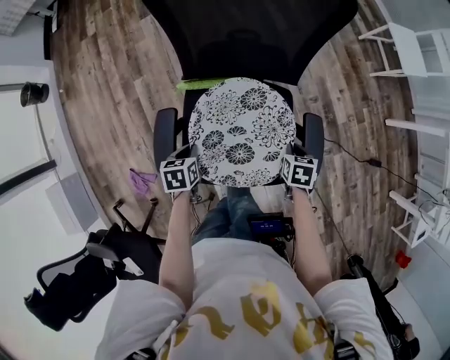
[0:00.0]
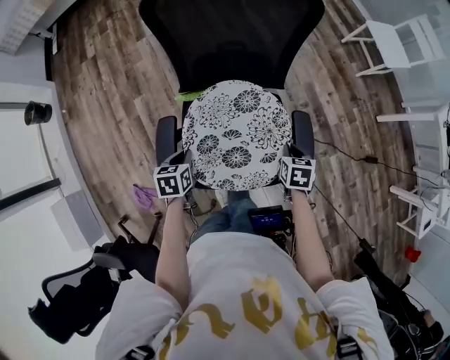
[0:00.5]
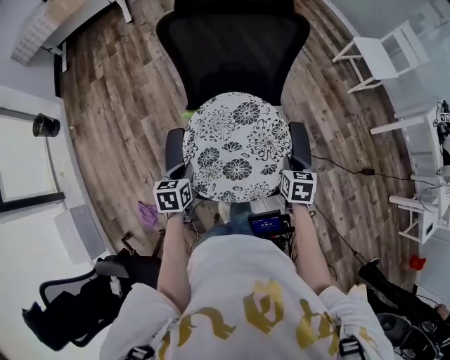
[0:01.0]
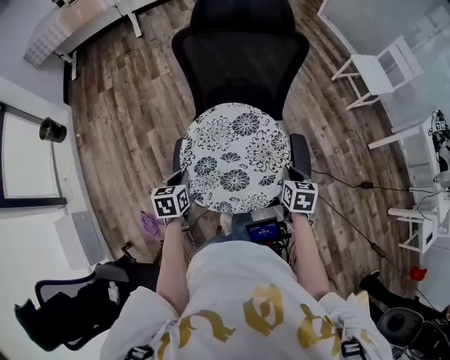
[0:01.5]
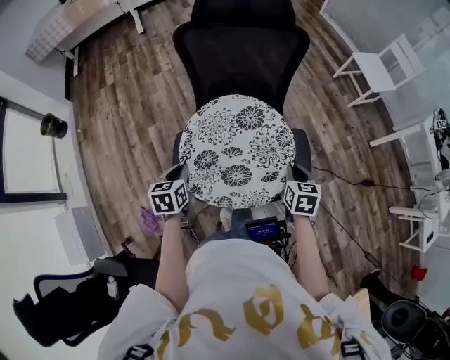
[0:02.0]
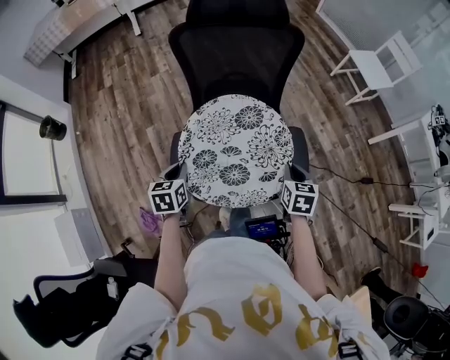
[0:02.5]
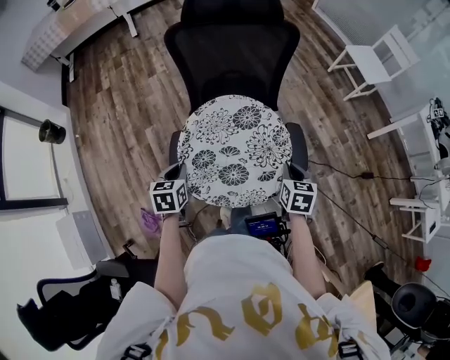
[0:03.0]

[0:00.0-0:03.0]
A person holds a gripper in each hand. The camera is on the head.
0:00.0 to 0:01.5: Both grippers travel together upward, roughly 15 cm.
0:01.5 to 0:03.0: There are only small adjustments of the grippers.

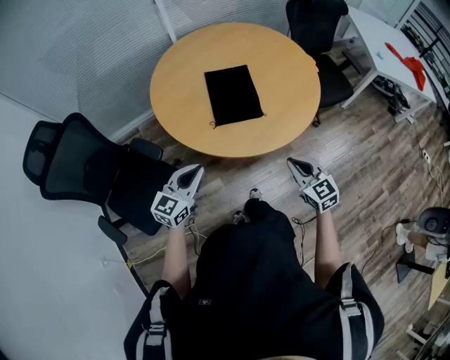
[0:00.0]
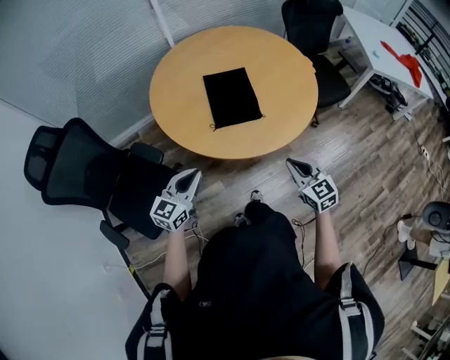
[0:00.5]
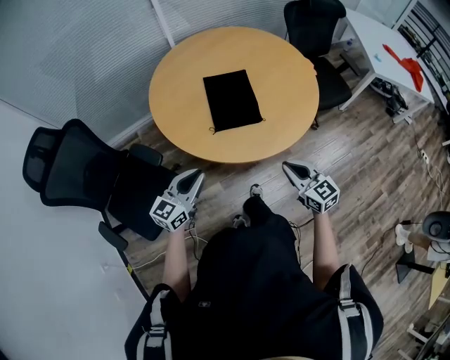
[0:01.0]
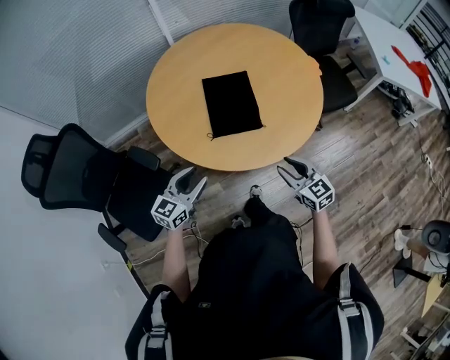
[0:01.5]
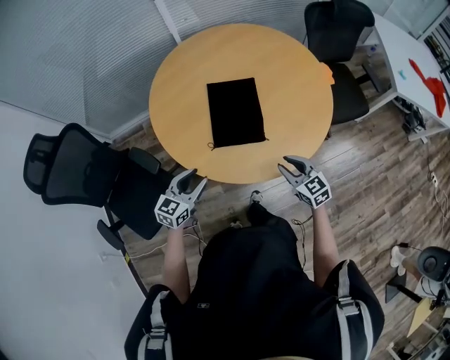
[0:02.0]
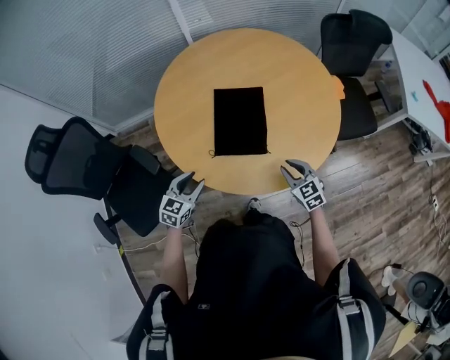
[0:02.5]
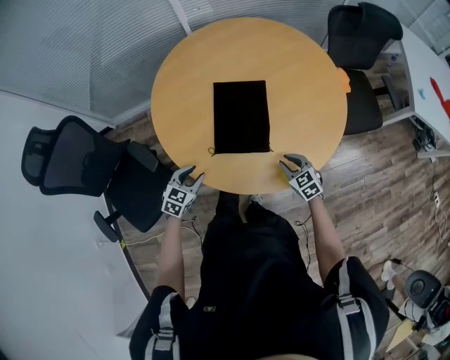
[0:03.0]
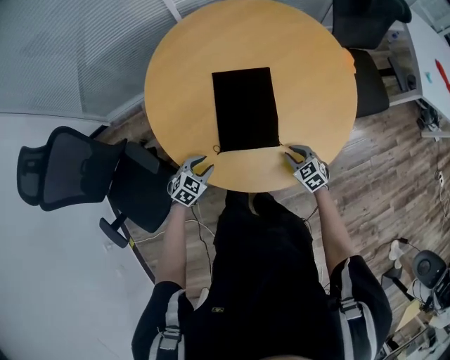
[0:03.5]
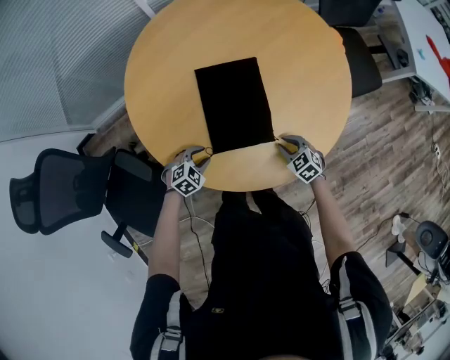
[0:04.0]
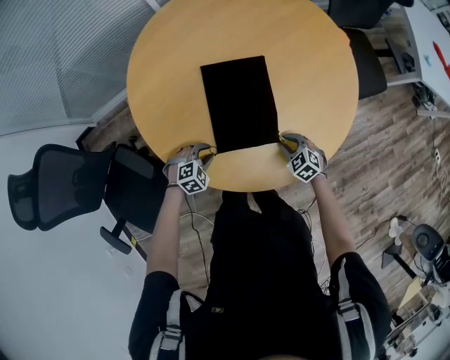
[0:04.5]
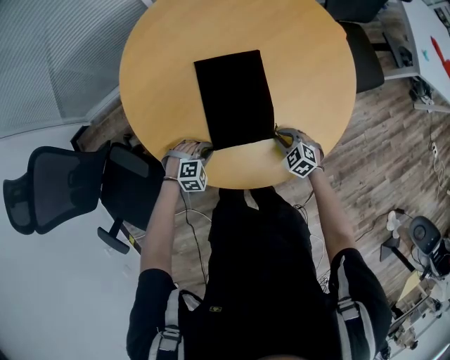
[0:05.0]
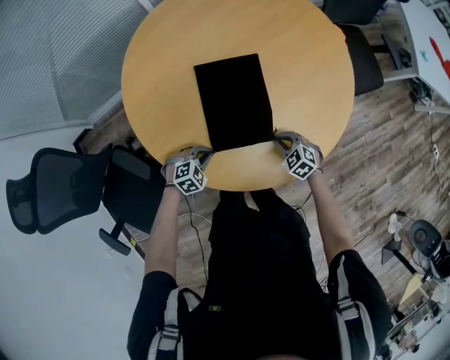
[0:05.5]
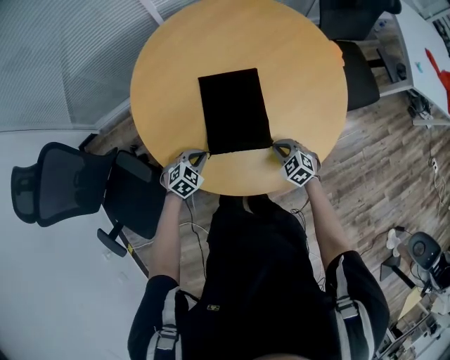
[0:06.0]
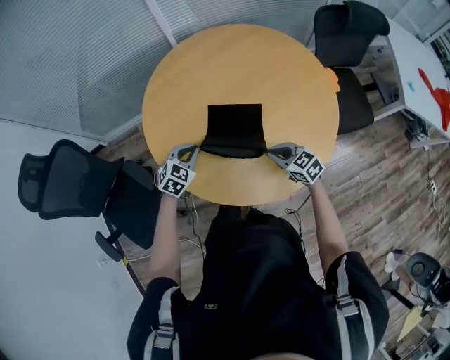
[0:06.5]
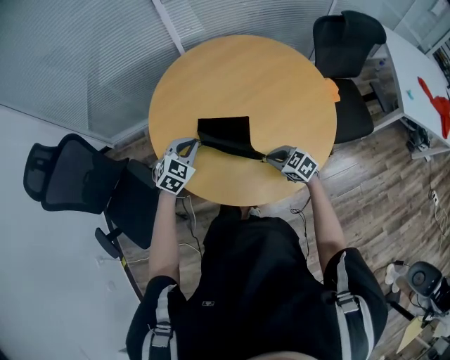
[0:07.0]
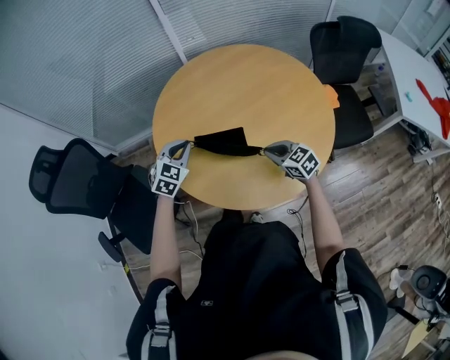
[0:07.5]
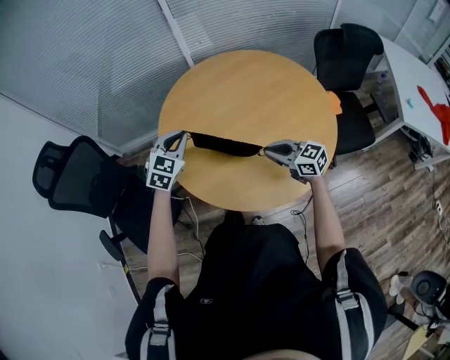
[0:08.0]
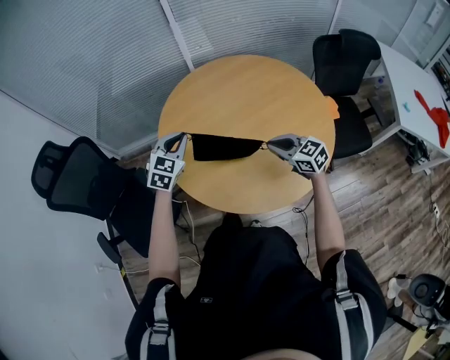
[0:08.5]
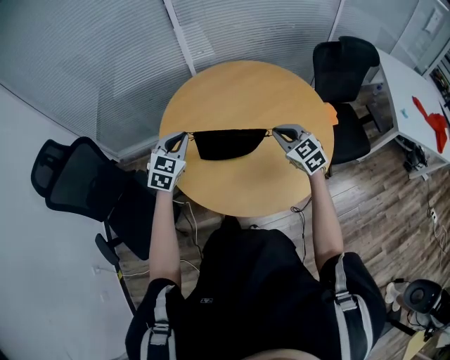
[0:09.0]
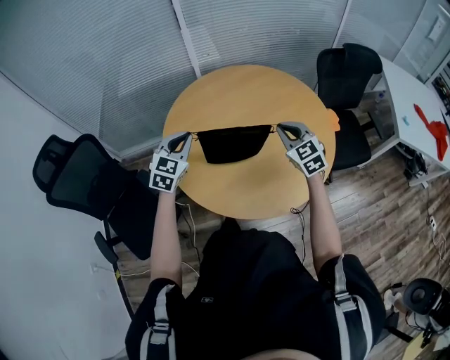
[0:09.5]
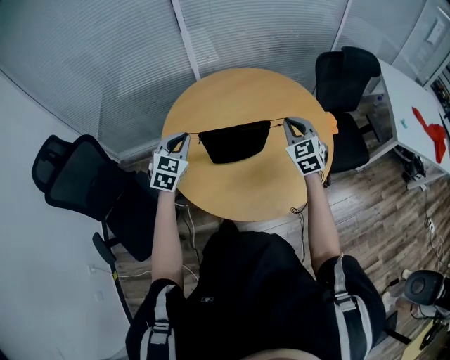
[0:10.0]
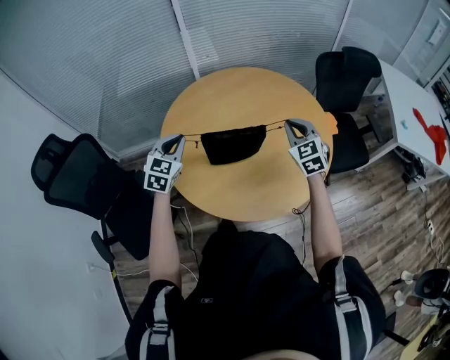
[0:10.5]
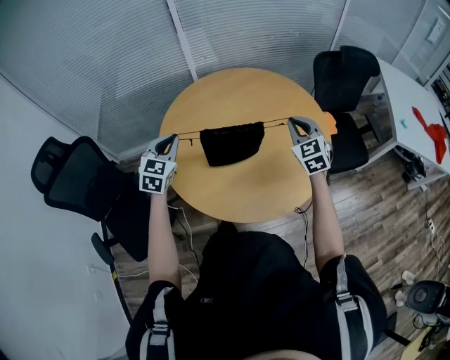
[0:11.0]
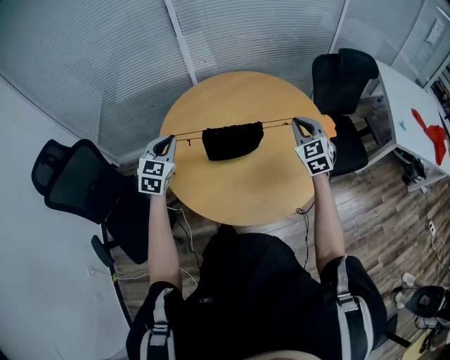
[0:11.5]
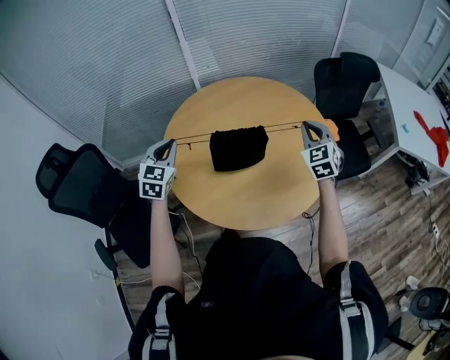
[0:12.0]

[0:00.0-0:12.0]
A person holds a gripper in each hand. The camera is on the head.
0:00.0 to 0:02.0: The grippers both shift forward and downward by approximately 15 cm. The right gripper opens its fingers, while the left gripper opens its fingers.
0:02.0 to 0:04.0: The grippers both shift downward and forward by about 25 cm. The left gripper tips its fingers downward by roughly 40 degrees, while the right gripper swivels about 30 degrees.
0:04.0 to 0:06.0: The left gripper ends up approximately 5 cm from where it was, and closes up.
0:06.0 to 0:08.0: Both grippers move upward, some 25 cm. The right gripper points its fingers about 40 degrees further upward, while the left gripper turns by some 40 degrees.
0:08.0 to 0:10.0: The right gripper goes approximately 15 cm upward, forward and to the right, and turns by roughly 50 degrees.
0:10.0 to 0:12.0: The right gripper is displaced to the right by about 10 cm.

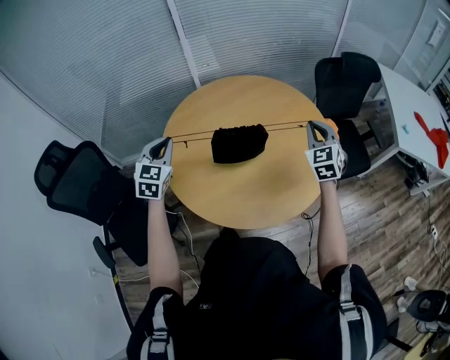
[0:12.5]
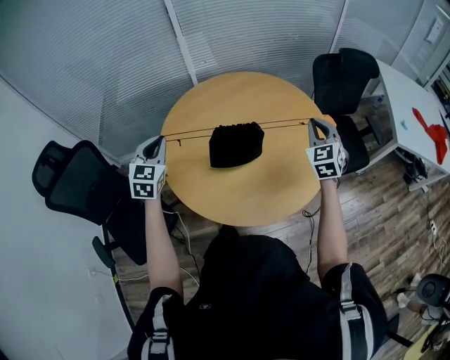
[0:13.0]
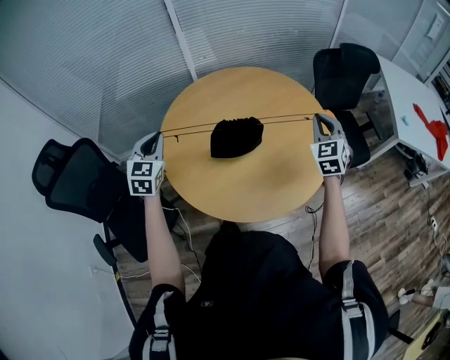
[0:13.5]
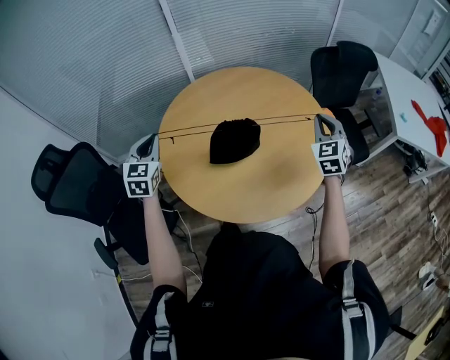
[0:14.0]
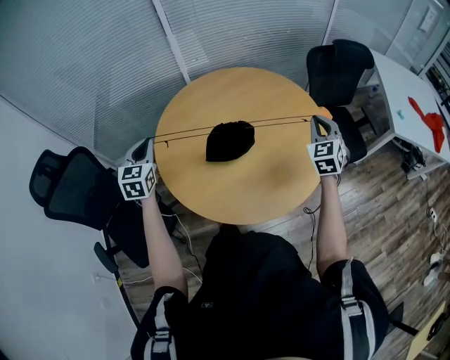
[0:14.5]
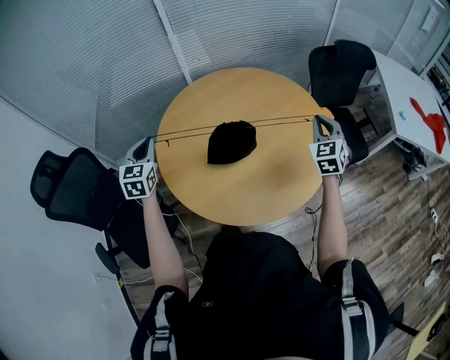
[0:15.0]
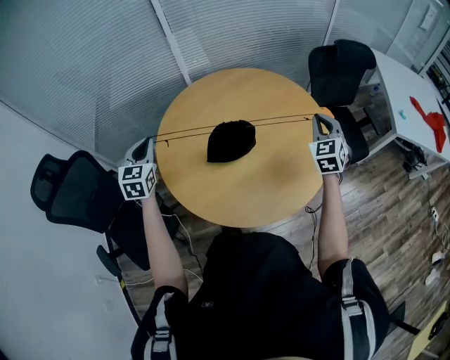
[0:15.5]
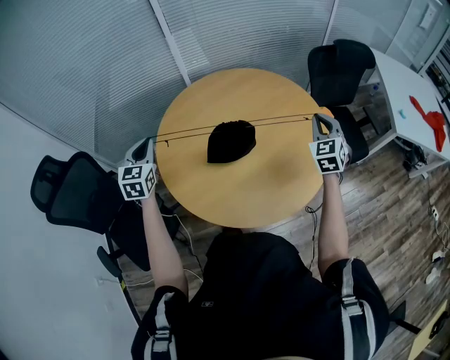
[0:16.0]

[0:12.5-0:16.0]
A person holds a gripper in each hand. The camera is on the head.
0:12.5 to 0:14.5: The left gripper heads to the left, covering about 5 cm.
0:14.5 to 0:16.0: The grippers stay close to where they were, moving slightly.

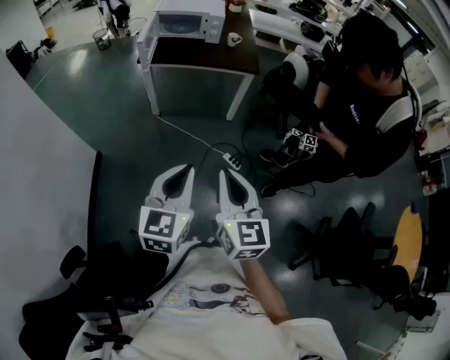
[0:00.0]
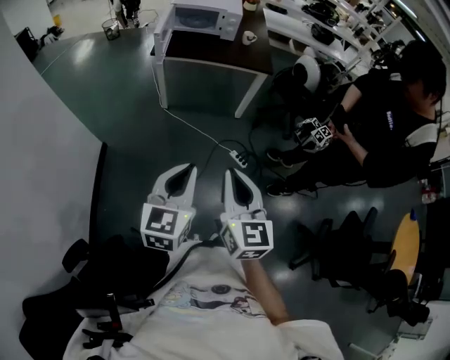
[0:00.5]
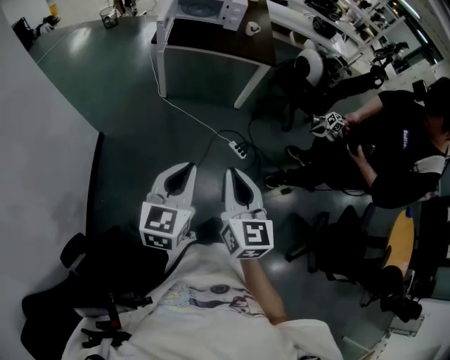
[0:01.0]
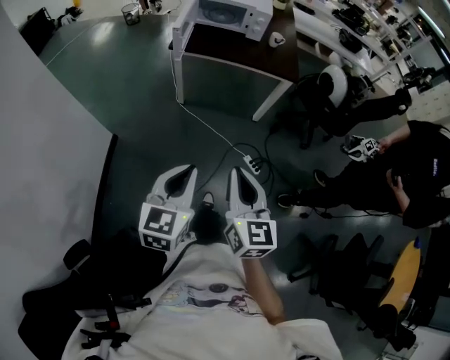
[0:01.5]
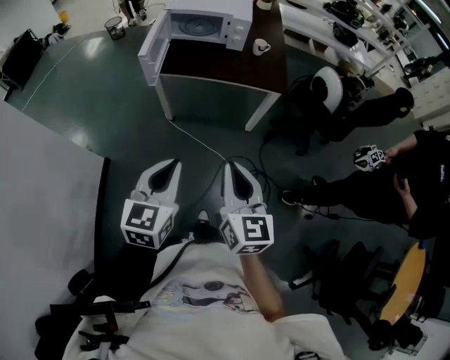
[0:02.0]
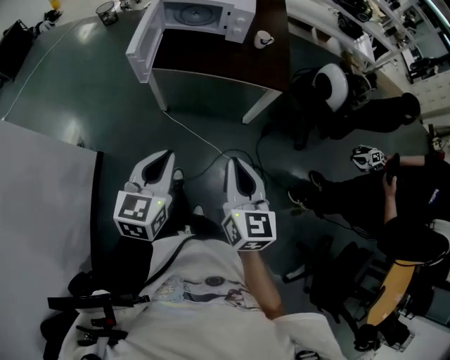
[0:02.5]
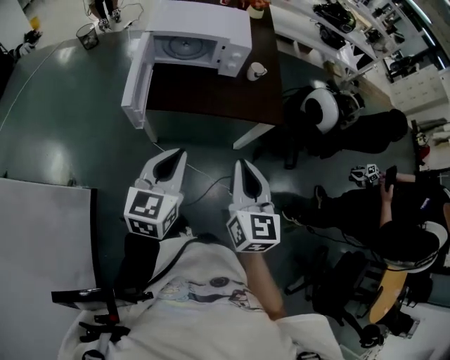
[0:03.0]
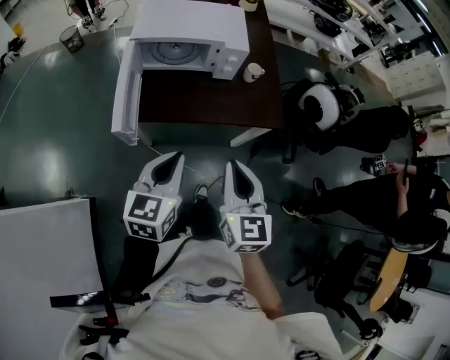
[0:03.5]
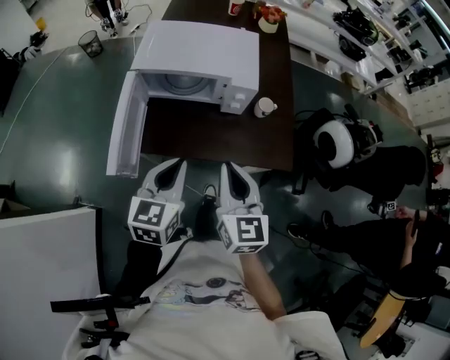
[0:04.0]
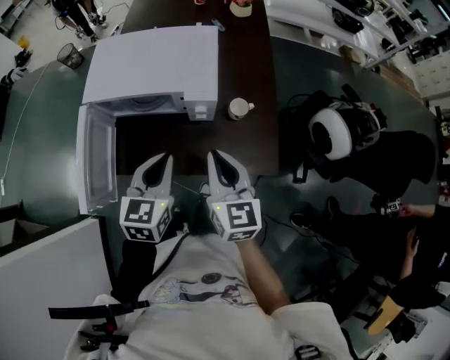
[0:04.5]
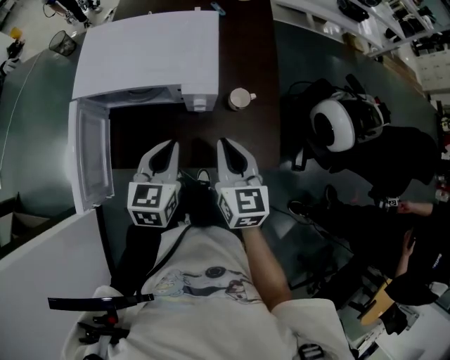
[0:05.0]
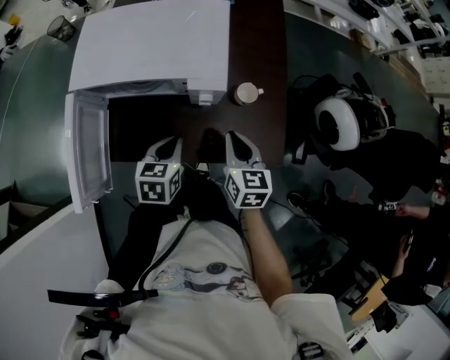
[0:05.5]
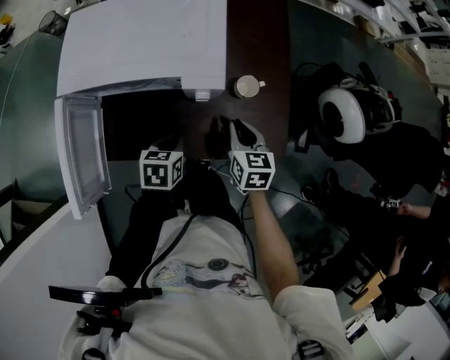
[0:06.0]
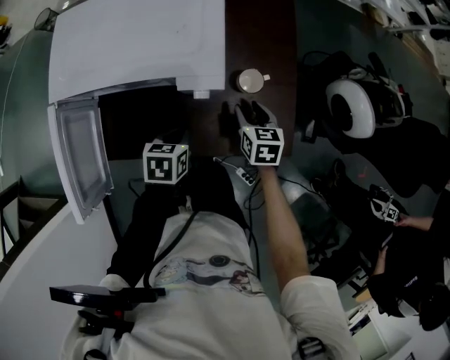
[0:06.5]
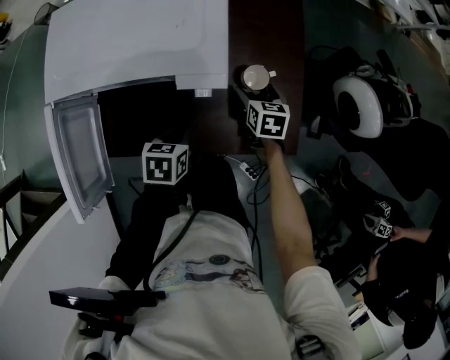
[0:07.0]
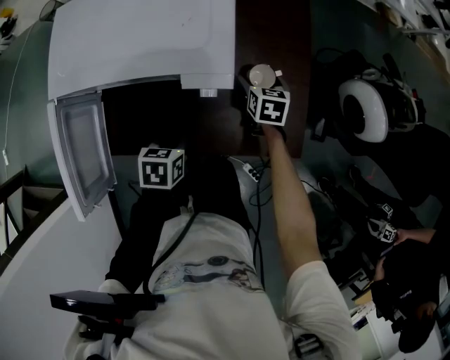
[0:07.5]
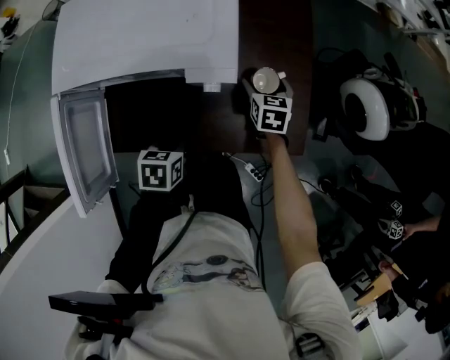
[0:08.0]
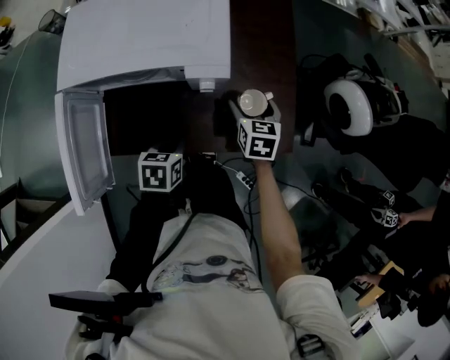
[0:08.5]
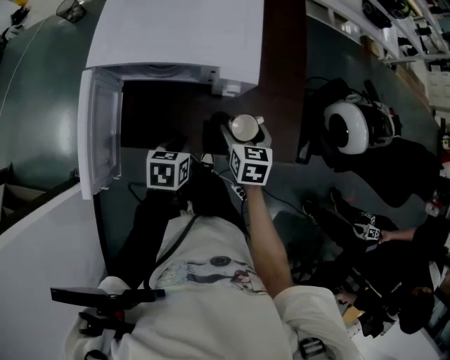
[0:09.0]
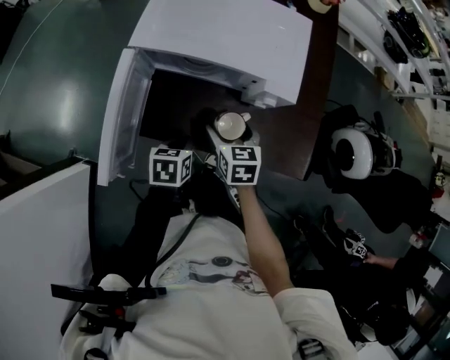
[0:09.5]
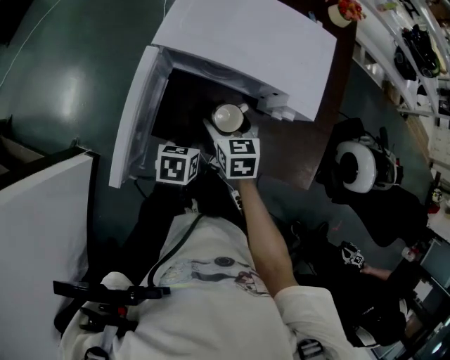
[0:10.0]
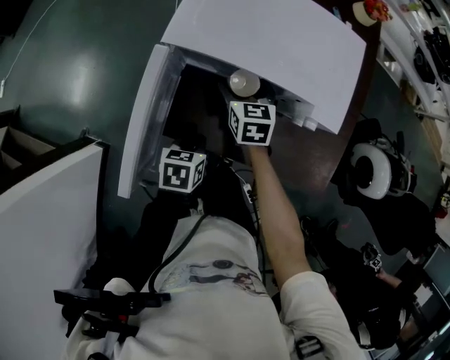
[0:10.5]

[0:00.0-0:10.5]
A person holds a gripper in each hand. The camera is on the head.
0:00.0 to 0:02.0: The two grippers go some 20 cm forward.
0:02.0 to 0:04.0: The pair of grippers is taken forward, approximately 40 cm.
0:04.0 to 0:06.5: The left gripper travels downward and forward by some 25 cm, and tips its fingers downward by about 40 degrees; the right gripper heads downward, forward and to the right, covering approximately 35 cm, points its fingers about 30 degrees further downward, and opens up.
0:06.5 to 0:08.5: The left gripper heads backward, covering about 5 cm, while the right gripper travels forward and back again, roughly 10 cm each way, and opens up.
0:08.5 to 0:10.5: The left gripper moves to the left, roughly 15 cm. Meanwhile the right gripper travels to the left by some 30 cm, and changes its angle by approximately 20 degrees.
